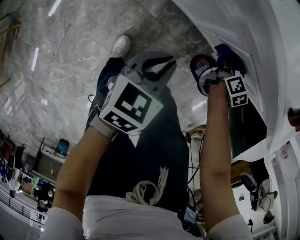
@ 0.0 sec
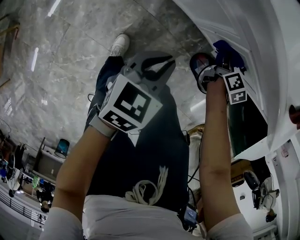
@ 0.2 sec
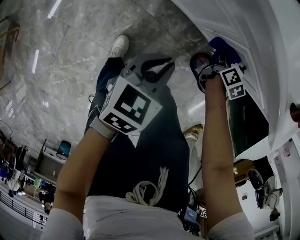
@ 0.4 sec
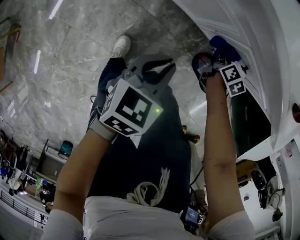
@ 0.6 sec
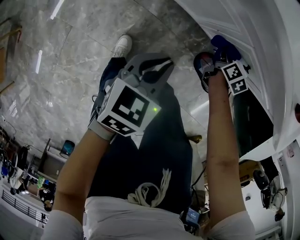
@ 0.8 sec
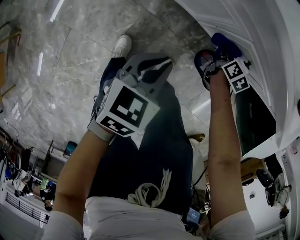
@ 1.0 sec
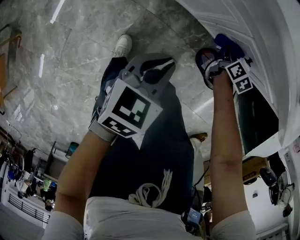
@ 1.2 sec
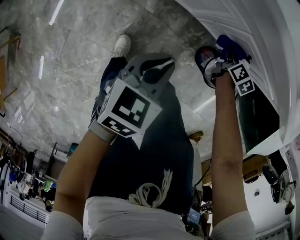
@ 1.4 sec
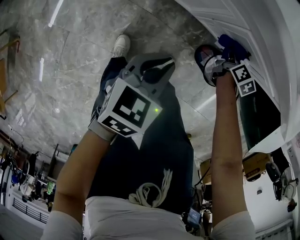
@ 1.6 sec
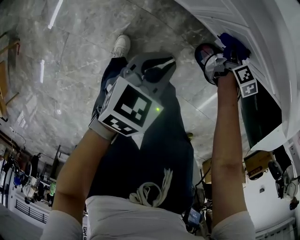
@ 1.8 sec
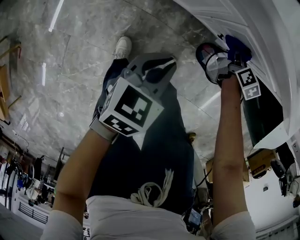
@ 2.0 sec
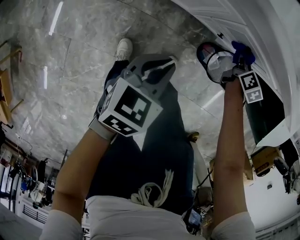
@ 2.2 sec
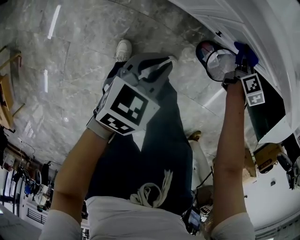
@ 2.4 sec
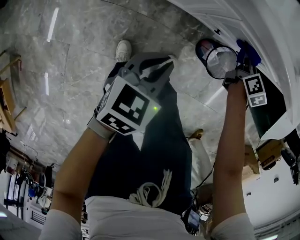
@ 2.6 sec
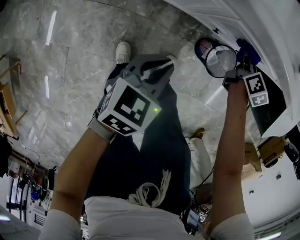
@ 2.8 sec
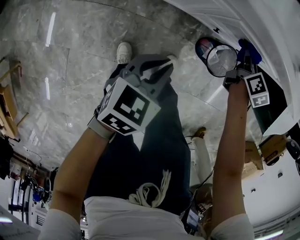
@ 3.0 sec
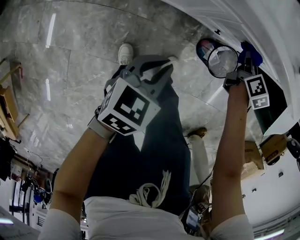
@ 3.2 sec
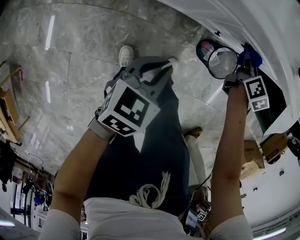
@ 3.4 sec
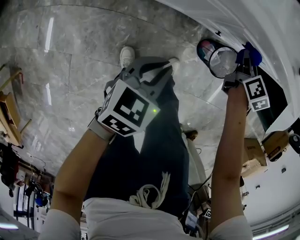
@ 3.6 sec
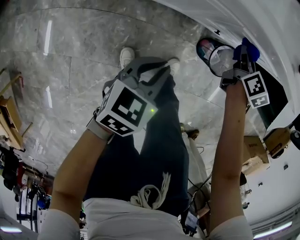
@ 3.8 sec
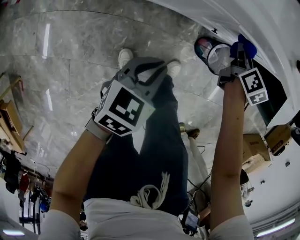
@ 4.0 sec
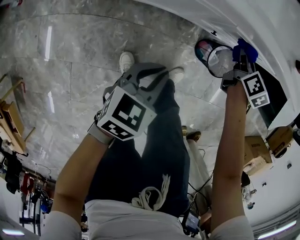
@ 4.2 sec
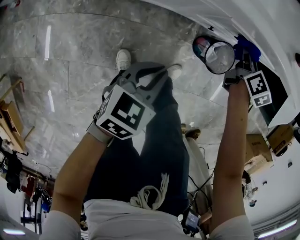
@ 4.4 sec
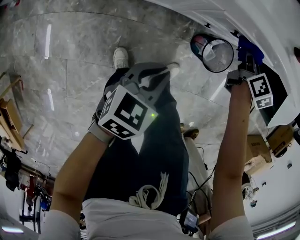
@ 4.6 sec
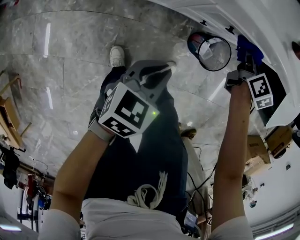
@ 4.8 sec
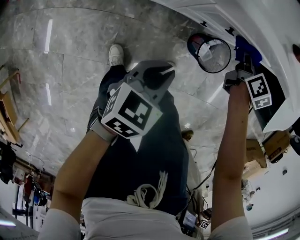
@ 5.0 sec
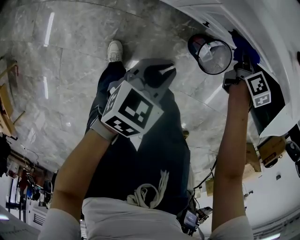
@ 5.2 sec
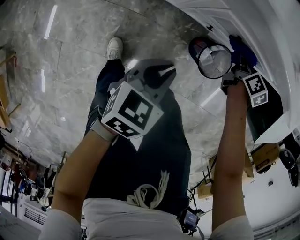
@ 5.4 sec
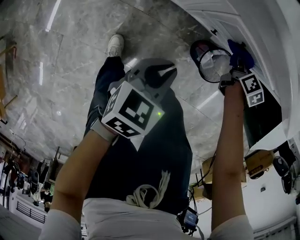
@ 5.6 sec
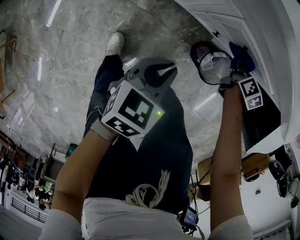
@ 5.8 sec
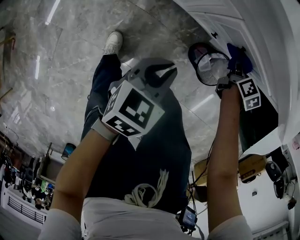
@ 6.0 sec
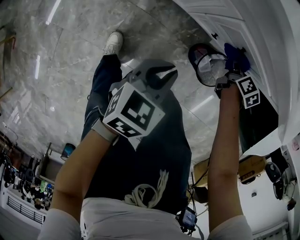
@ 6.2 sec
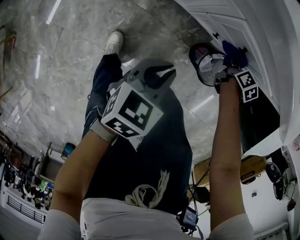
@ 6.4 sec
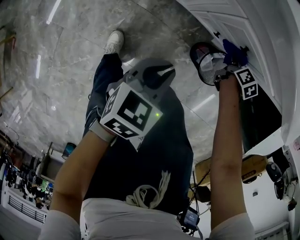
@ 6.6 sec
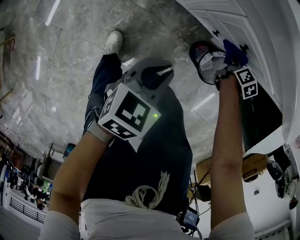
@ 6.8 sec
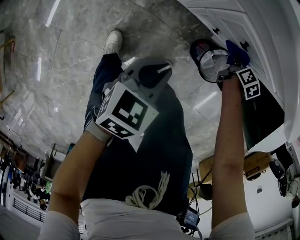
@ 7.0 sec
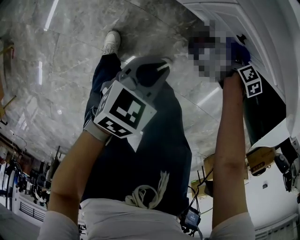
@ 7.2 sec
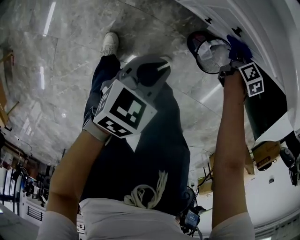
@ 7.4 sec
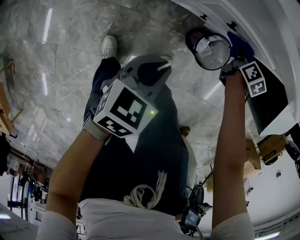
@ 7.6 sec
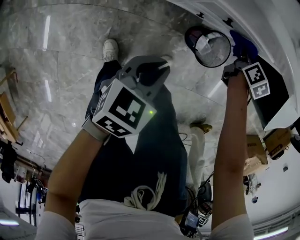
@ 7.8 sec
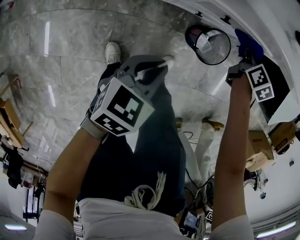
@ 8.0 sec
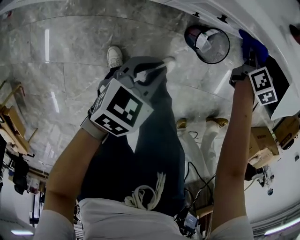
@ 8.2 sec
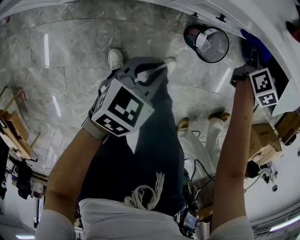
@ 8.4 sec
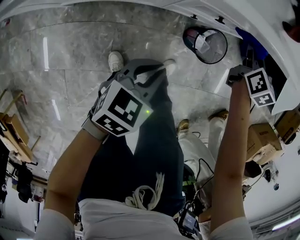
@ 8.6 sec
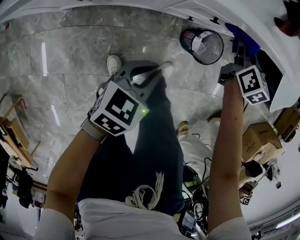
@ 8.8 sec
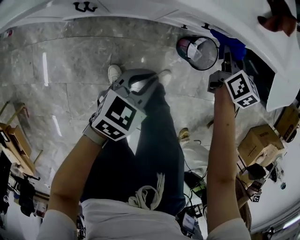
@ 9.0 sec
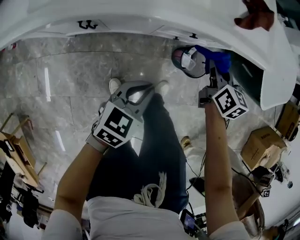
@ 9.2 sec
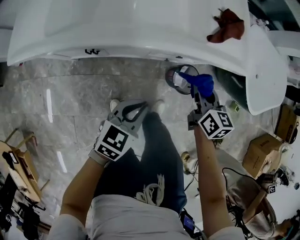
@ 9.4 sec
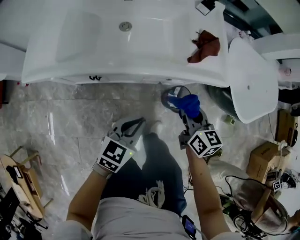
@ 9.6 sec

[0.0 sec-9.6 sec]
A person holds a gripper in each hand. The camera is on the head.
0.0 sec to 1.6 sec: The right gripper travels to the right by roughly 5 cm.
1.6 sec to 3.2 sec: The right gripper travels upward by approximately 10 cm.
3.2 sec to 4.8 sec: The right gripper moves about 5 cm. The left gripper moves to the right, roughly 5 cm.
4.8 sec to 6.4 sec: The right gripper shifts roughly 15 cm downward.
6.4 sec to 8.0 sec: The left gripper turns by about 20 degrees, while the right gripper heads upward and to the right, covering some 15 cm.
8.0 sec to 9.6 sec: The right gripper goes approximately 35 cm upward and backward, and rotates roughly 20 degrees. Meanwhile the left gripper is displaced upward by about 20 cm.

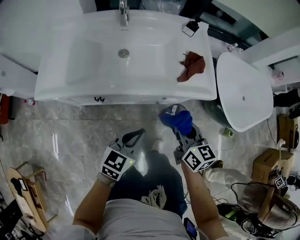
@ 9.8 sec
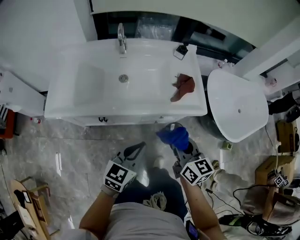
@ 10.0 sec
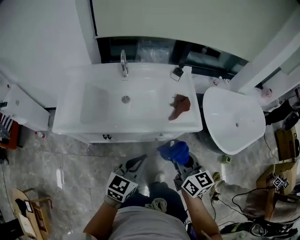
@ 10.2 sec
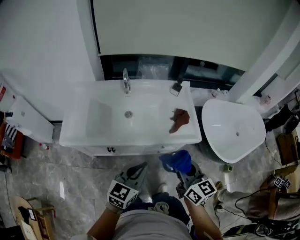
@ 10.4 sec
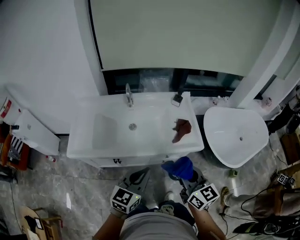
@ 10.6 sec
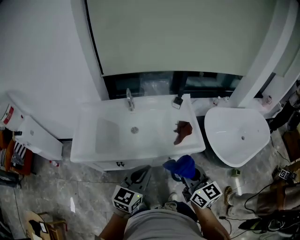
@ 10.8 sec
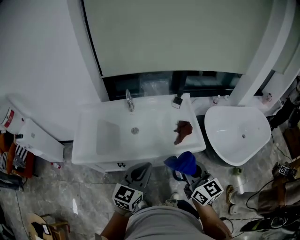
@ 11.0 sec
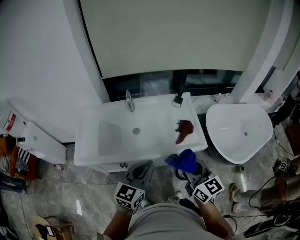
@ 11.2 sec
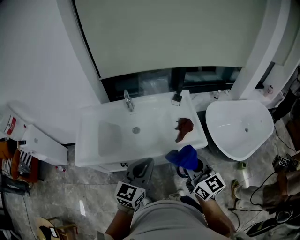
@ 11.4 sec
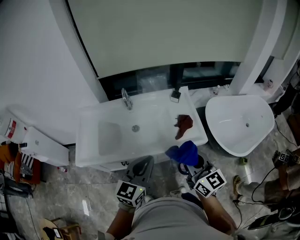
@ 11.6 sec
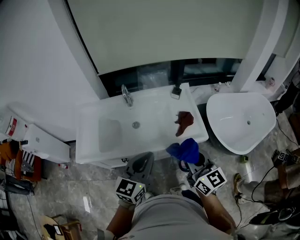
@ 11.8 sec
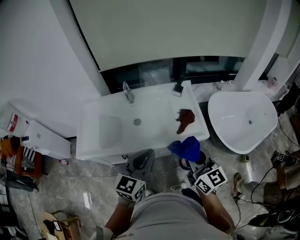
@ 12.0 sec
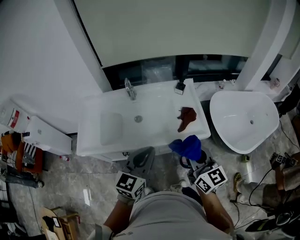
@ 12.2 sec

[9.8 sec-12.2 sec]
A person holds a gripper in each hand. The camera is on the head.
9.8 sec to 11.0 sec: The grippers both shift upward by approximately 25 cm. The right gripper rotates roughly 20 degrees.
11.0 sec to 12.2 sec: The grippers move only a little.

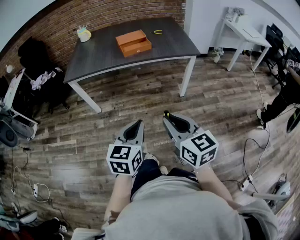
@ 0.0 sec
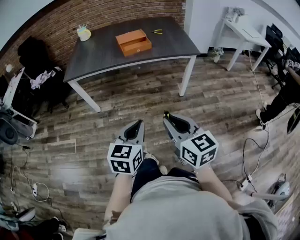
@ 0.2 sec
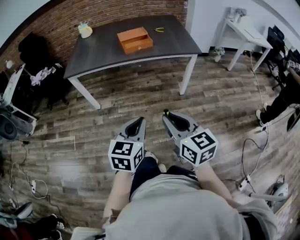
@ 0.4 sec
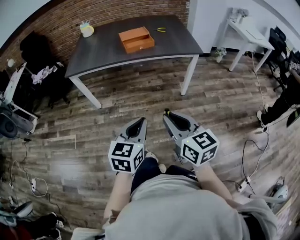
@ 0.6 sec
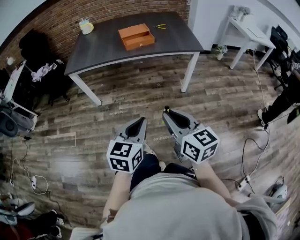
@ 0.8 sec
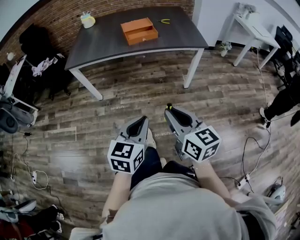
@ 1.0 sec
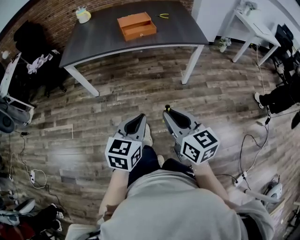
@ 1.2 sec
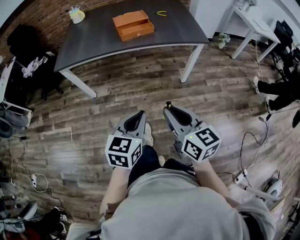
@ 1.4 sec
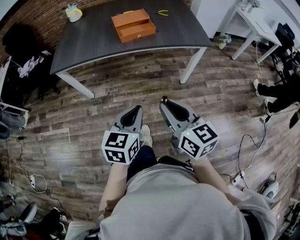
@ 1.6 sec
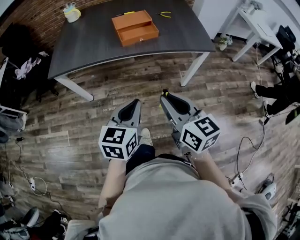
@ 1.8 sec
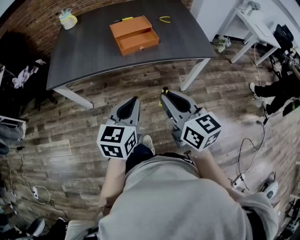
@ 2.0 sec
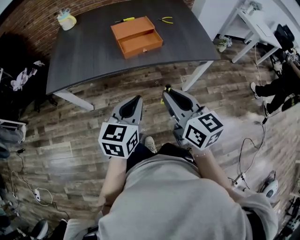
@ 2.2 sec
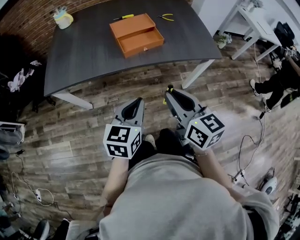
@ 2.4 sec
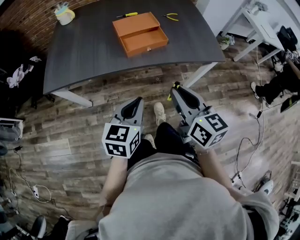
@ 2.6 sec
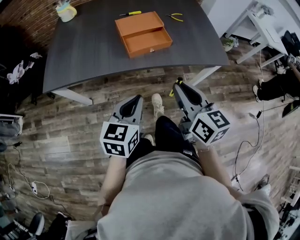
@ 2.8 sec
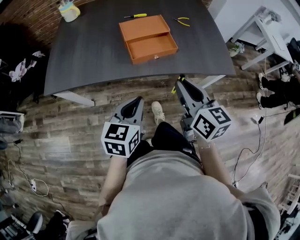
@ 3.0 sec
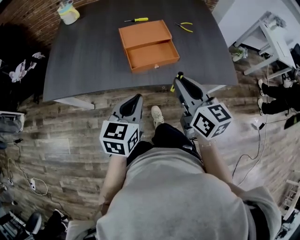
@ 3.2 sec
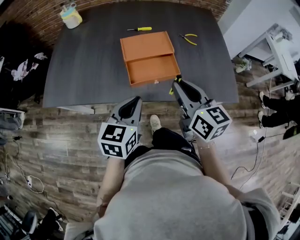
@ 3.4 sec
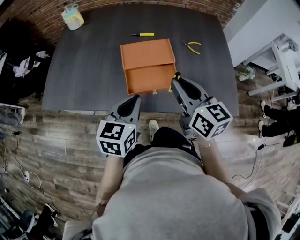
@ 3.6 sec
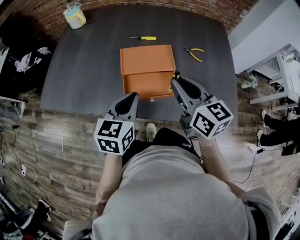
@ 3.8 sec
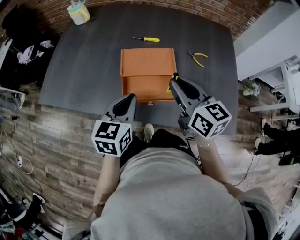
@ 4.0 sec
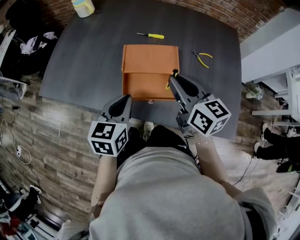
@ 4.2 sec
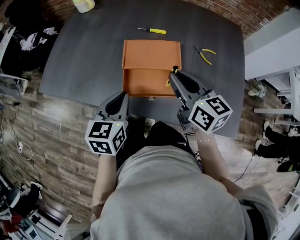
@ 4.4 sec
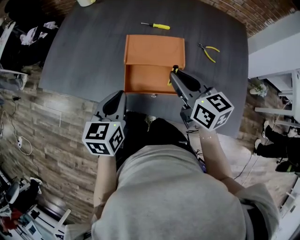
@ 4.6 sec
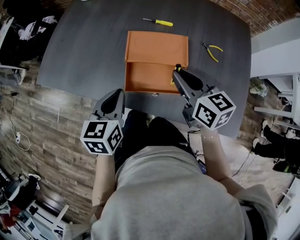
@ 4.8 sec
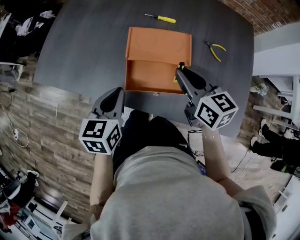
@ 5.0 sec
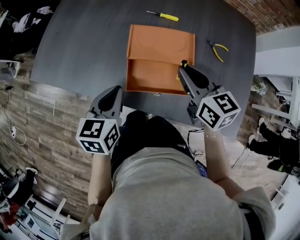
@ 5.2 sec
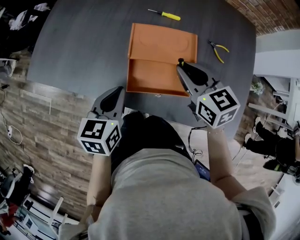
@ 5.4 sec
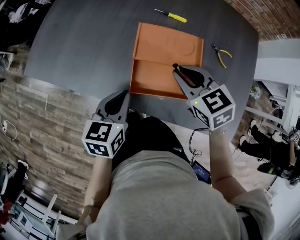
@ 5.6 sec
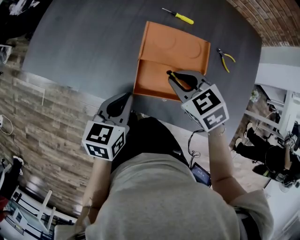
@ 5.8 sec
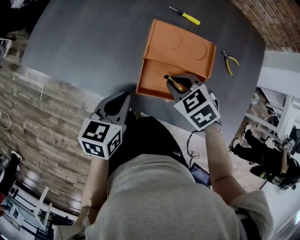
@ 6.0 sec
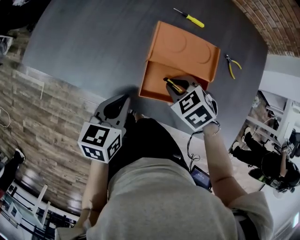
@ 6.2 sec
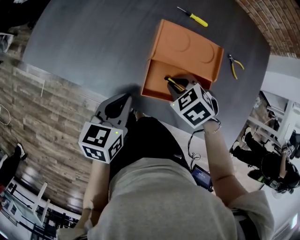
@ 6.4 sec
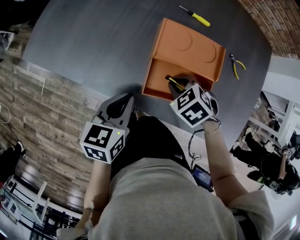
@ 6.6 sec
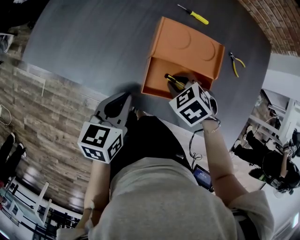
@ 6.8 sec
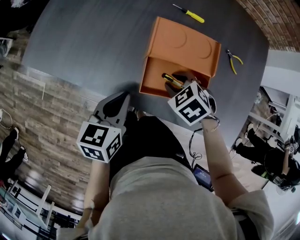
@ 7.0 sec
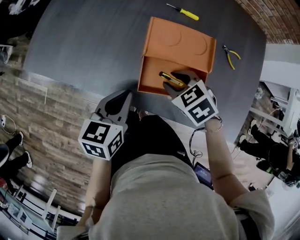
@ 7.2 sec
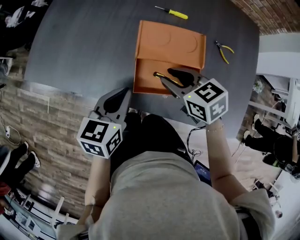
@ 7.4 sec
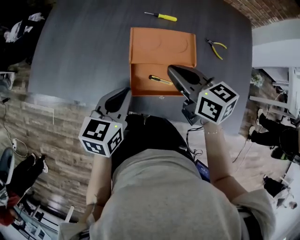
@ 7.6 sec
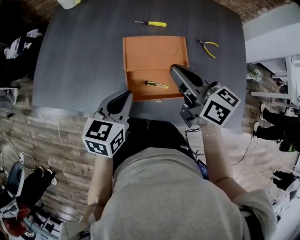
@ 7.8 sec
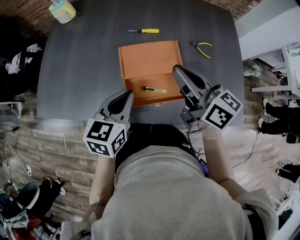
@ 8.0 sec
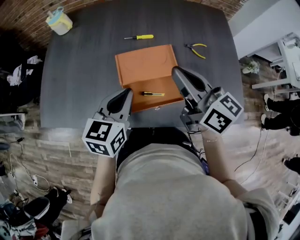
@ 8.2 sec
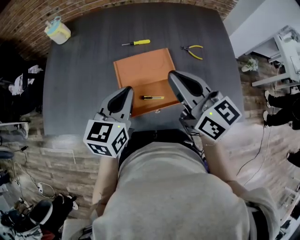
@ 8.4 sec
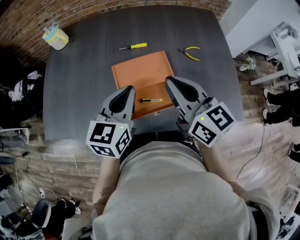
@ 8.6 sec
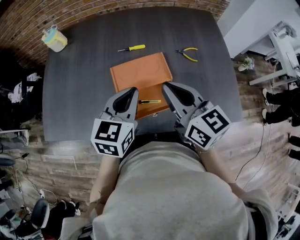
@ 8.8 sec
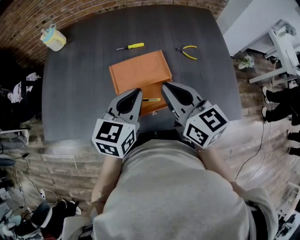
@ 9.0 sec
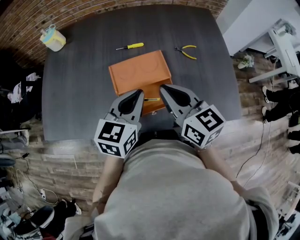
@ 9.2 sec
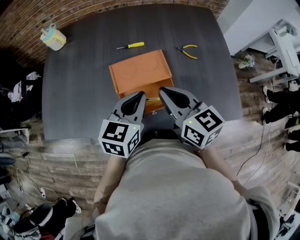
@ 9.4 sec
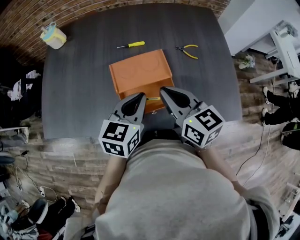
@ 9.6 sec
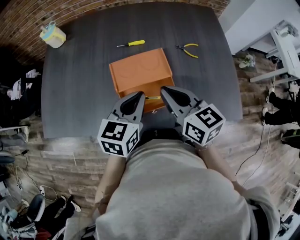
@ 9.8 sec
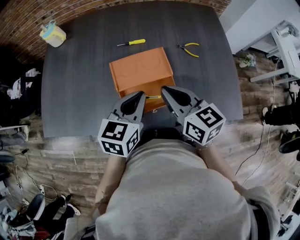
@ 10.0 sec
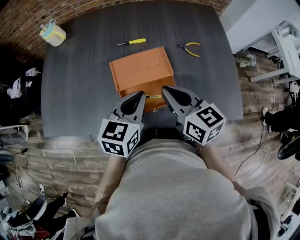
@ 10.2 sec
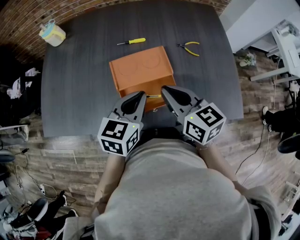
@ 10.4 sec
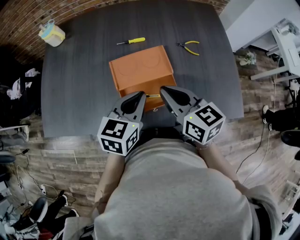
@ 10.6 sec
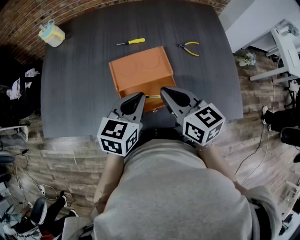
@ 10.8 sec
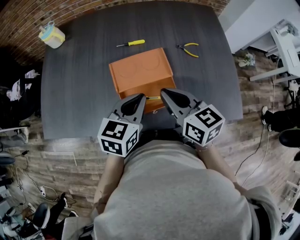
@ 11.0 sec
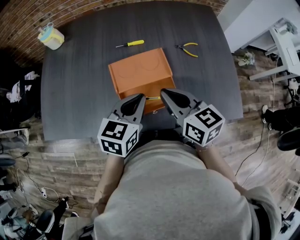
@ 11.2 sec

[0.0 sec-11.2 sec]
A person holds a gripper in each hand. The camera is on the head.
0.0 sec to 1.6 sec: Both grippers travel together forward, approximately 15 cm.
1.6 sec to 3.2 sec: The grippers both shift forward by some 35 cm.
3.2 sec to 4.8 sec: The right gripper moves about 20 cm, and changes its angle by approximately 30 degrees, while the left gripper moves roughly 15 cm, and rotates some 30 degrees.
4.8 sec to 6.4 sec: The right gripper heads downward and to the left, covering roughly 15 cm, and tilts its fingers roughly 50 degrees downward; the left gripper heads downward, covering approximately 5 cm.
6.4 sec to 8.0 sec: The right gripper shifts approximately 20 cm upward, angles its fingers upward, by some 70 degrees, and opens, then closes once more; the left gripper is displaced upward and to the right by some 10 cm, and changes its angle by approximately 30 degrees.
8.0 sec to 9.6 sec: The left gripper goes roughly 5 cm to the right, while the right gripper moves some 5 cm, and turns by some 20 degrees.
9.6 sec to 11.2 sec: The grippers move only a little.
